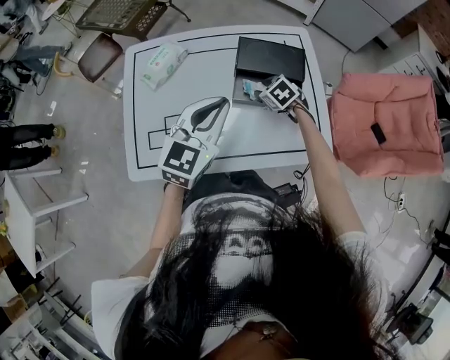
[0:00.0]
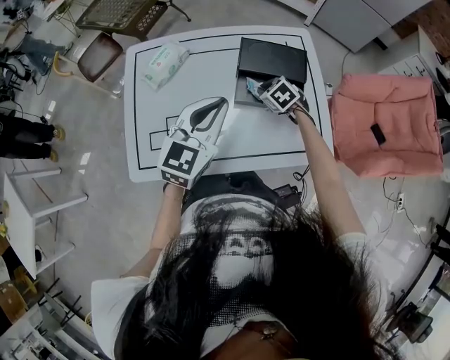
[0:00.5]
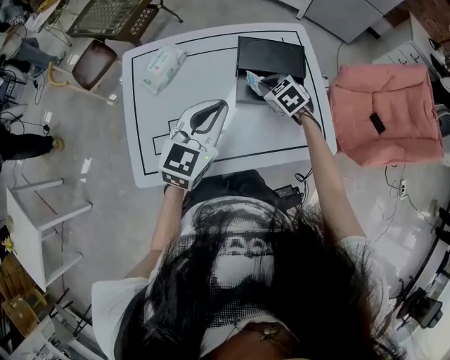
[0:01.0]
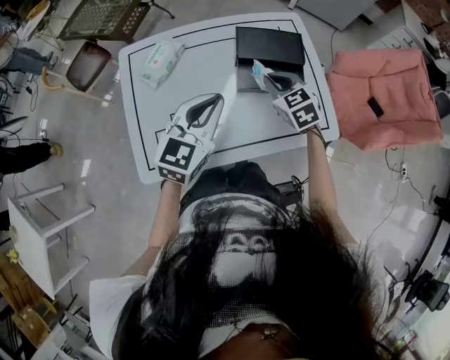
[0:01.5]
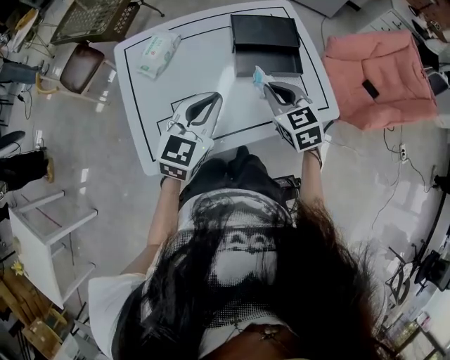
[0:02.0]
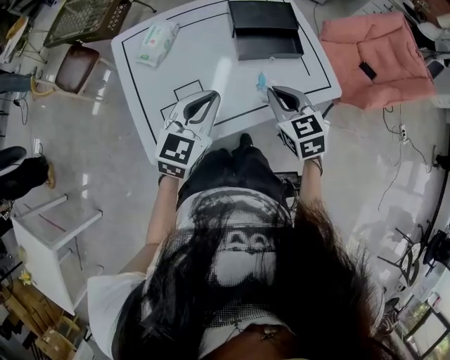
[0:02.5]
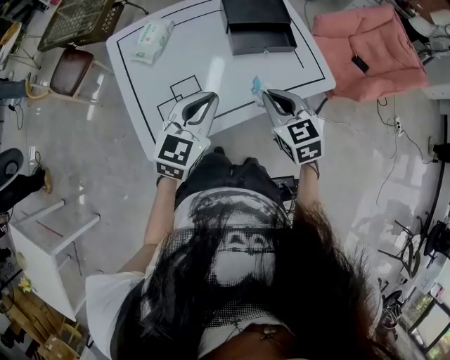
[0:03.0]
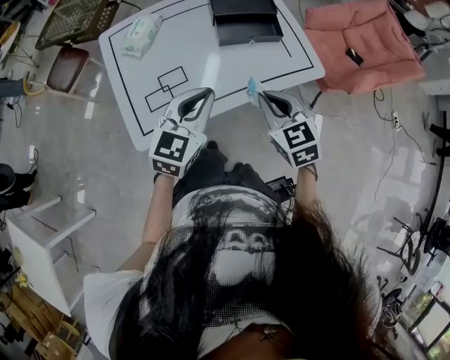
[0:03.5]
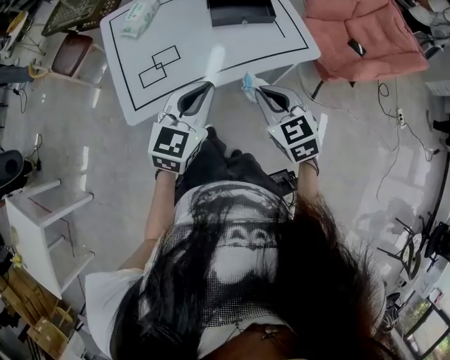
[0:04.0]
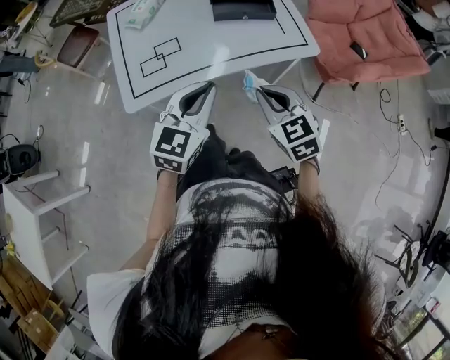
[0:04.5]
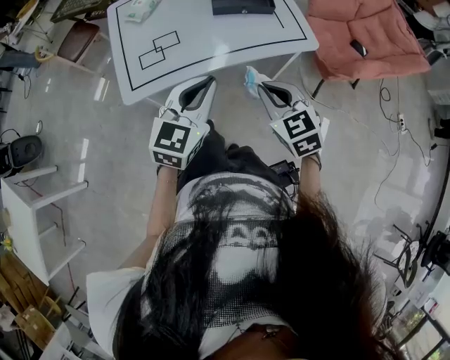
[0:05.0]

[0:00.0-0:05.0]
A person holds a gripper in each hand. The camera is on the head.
0:00.0 to 0:02.5: The right gripper travels backward and upward by some 30 cm, changes its angle by some 40 degrees, and closes. The left gripper heads to the left and backward, covering about 15 cm.
0:02.5 to 0:05.0: The two grippers go about 25 cm backward and to the right.

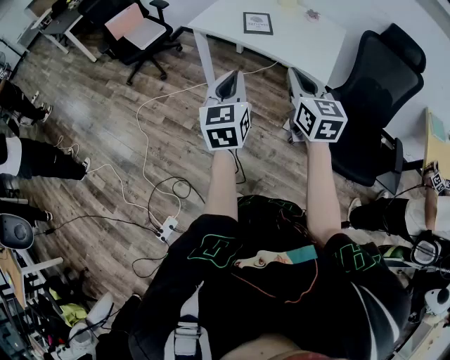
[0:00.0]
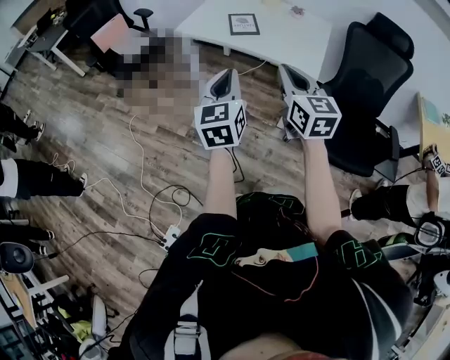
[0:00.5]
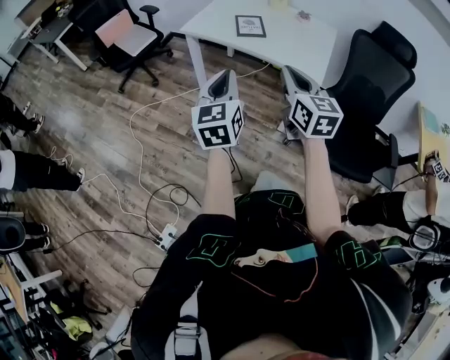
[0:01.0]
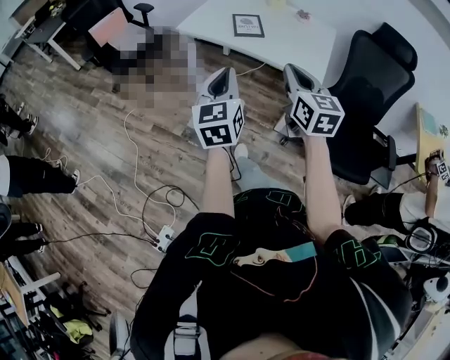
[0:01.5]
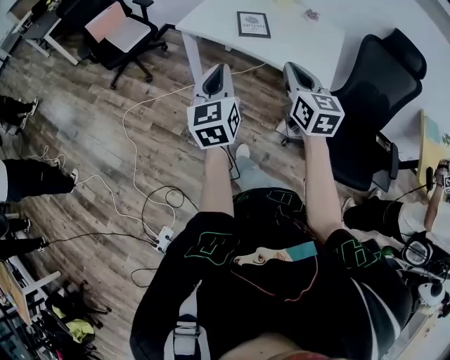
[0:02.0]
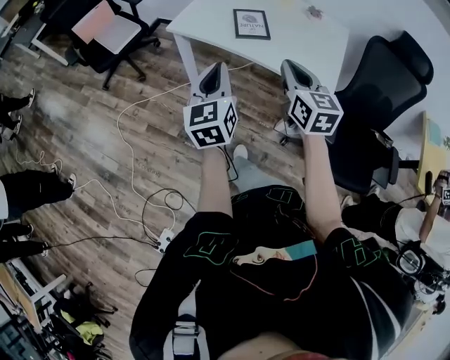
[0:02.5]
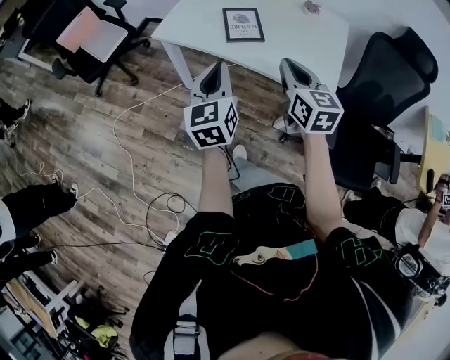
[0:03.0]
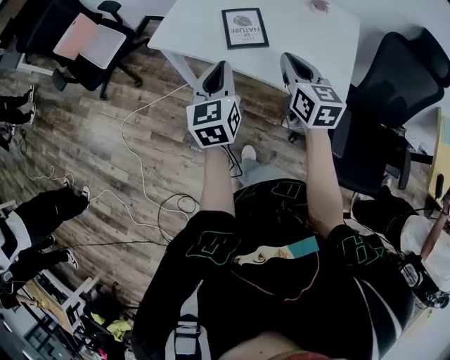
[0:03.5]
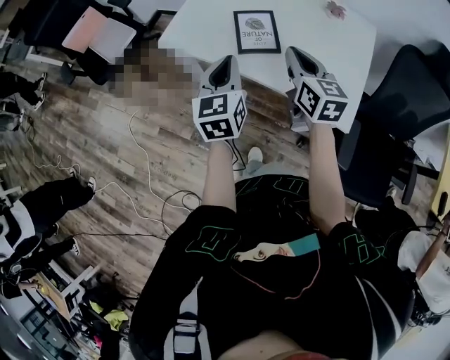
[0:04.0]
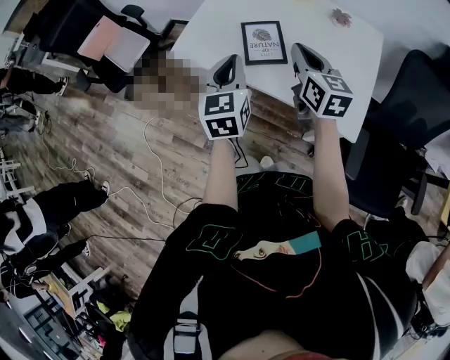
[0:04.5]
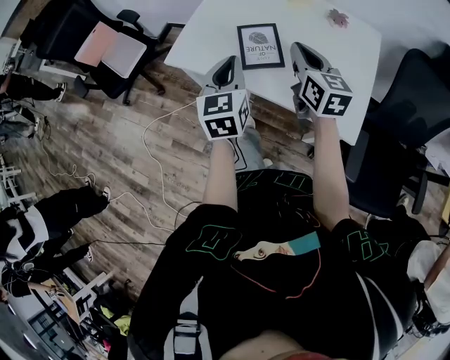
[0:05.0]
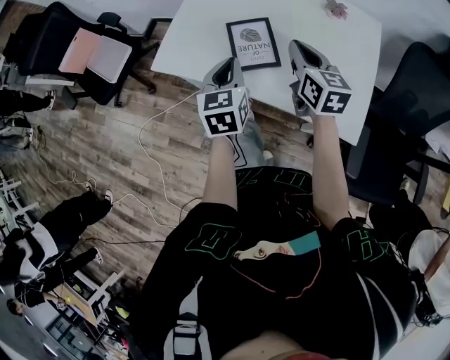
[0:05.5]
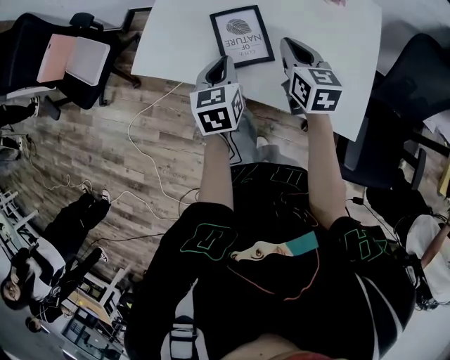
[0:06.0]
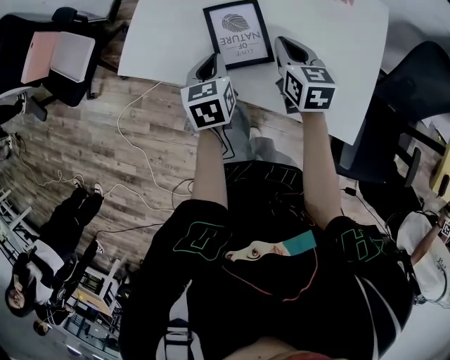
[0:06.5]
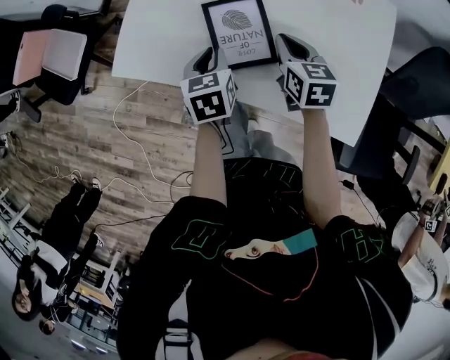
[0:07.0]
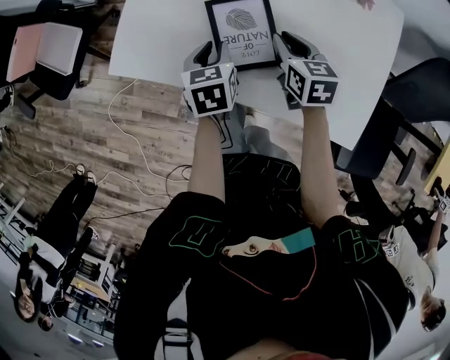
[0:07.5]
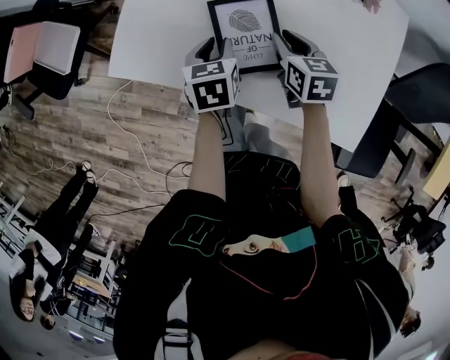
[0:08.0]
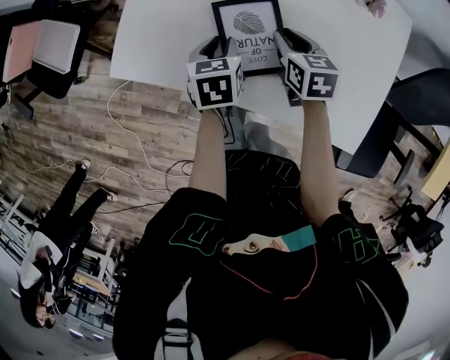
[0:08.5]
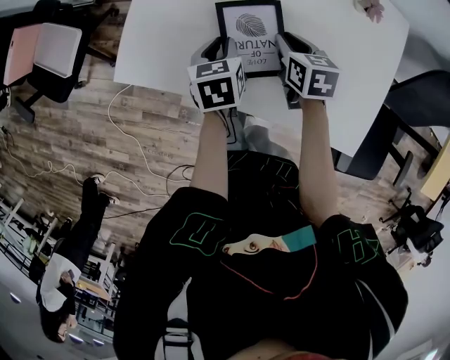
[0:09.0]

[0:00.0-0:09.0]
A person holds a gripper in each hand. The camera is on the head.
0:00.0 to 0:02.0: Both grippers travel together forward, about 10 cm.
0:02.0 to 0:04.5: The grippers both shift forward by roughly 30 cm.
0:04.5 to 0:07.0: Both grippers travel together downward and forward, approximately 25 cm. The right gripper turns by about 30 degrees, while the left gripper angles its fingers downward, by approximately 30 degrees.
0:07.0 to 0:09.0: The right gripper moves roughly 5 cm. Meanwhile the left gripper is displaced forward by approximately 5 cm.

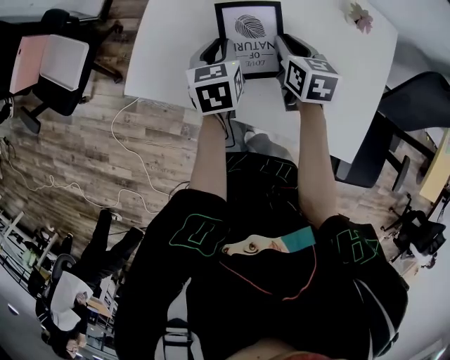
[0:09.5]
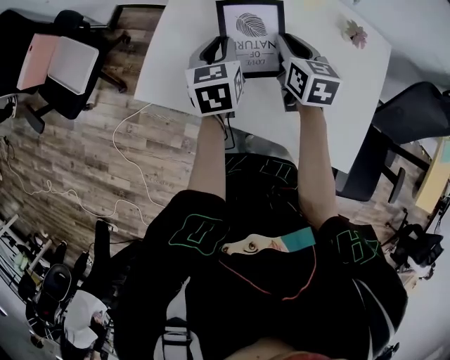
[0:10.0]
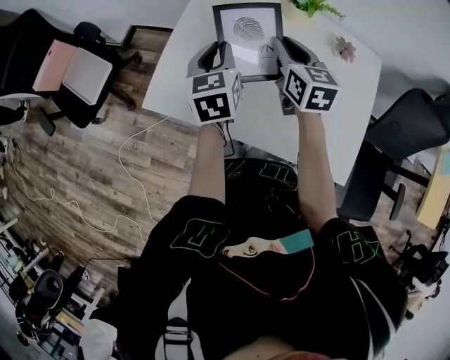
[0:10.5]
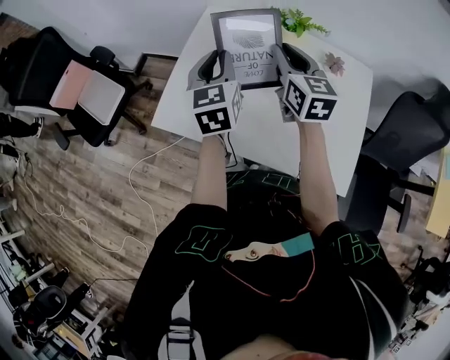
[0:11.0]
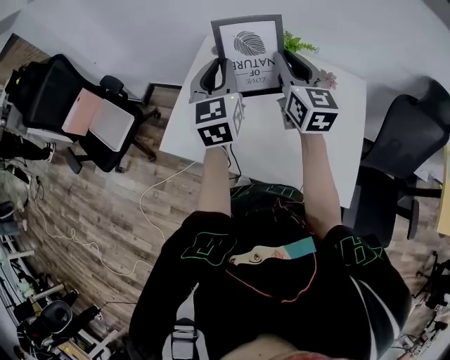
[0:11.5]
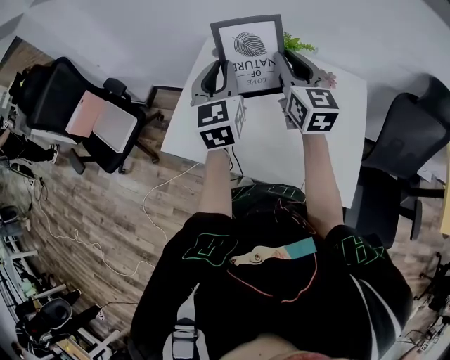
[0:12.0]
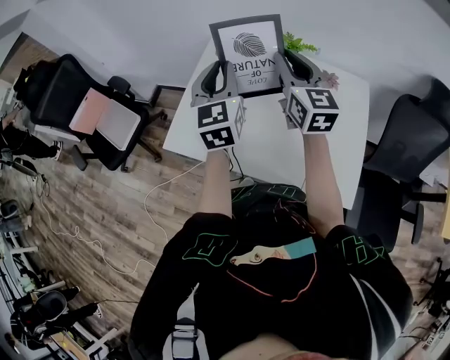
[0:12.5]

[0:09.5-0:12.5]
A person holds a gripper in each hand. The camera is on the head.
0:09.5 to 0:11.0: Both grippers travel together upward, some 20 cm. The left gripper rotates about 30 degrees; the right gripper angles its fingers upward, by roughly 30 degrees.
0:11.0 to 0:12.5: Both grippers move upward and to the right, approximately 10 cm.

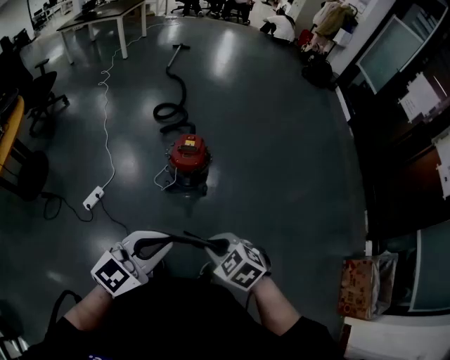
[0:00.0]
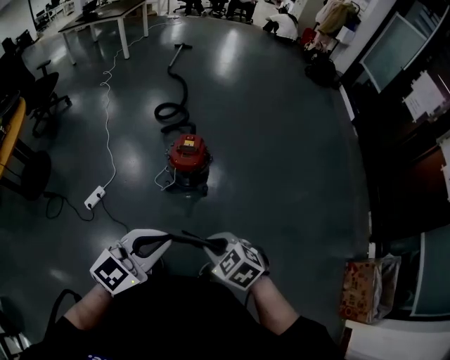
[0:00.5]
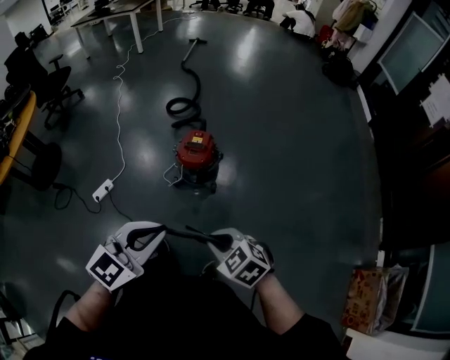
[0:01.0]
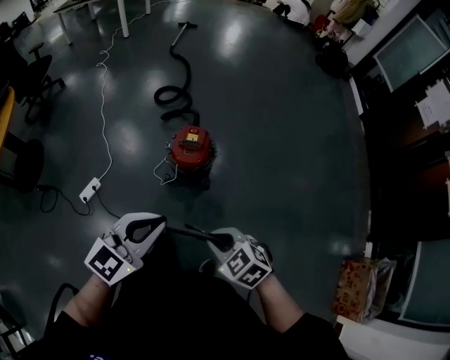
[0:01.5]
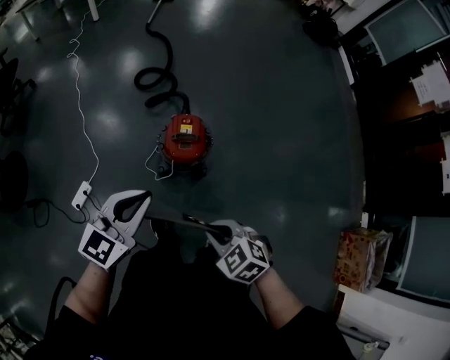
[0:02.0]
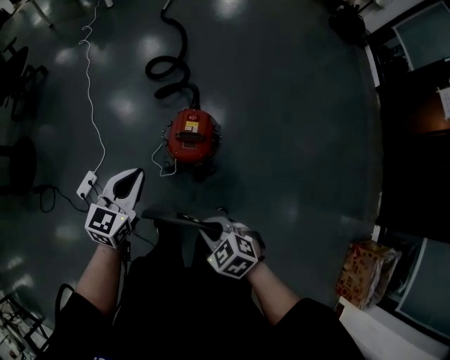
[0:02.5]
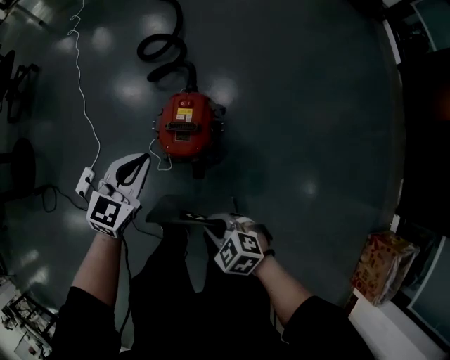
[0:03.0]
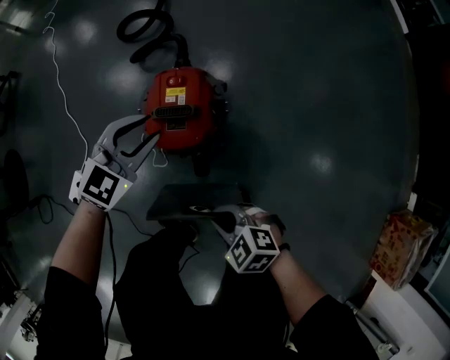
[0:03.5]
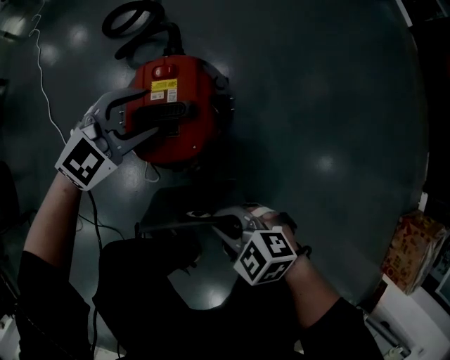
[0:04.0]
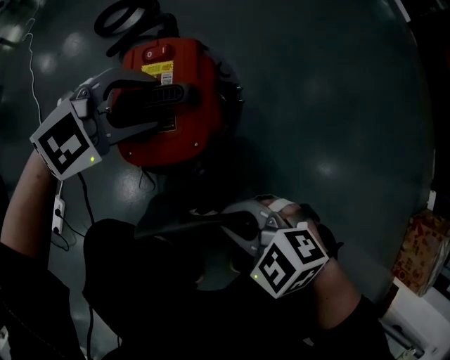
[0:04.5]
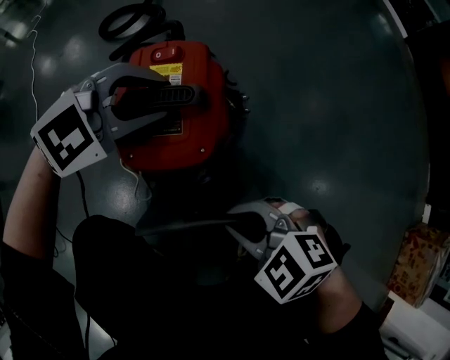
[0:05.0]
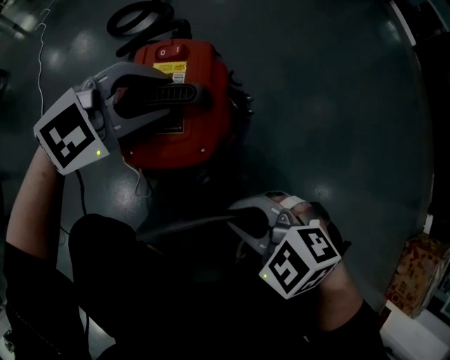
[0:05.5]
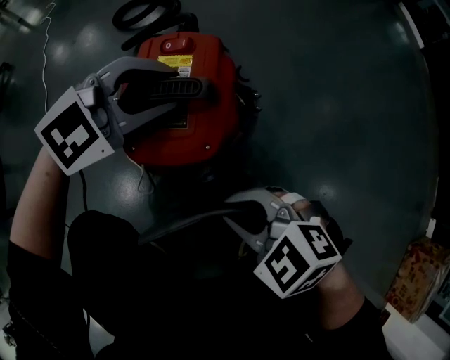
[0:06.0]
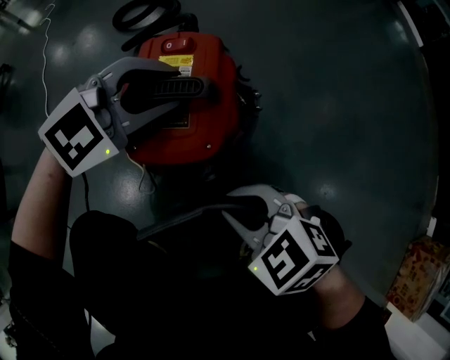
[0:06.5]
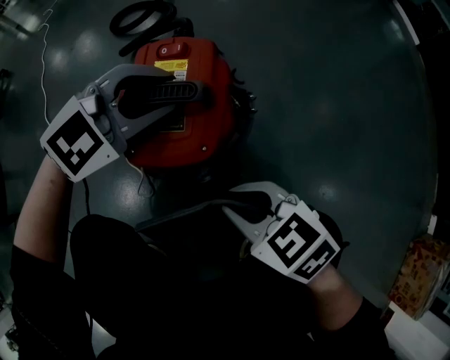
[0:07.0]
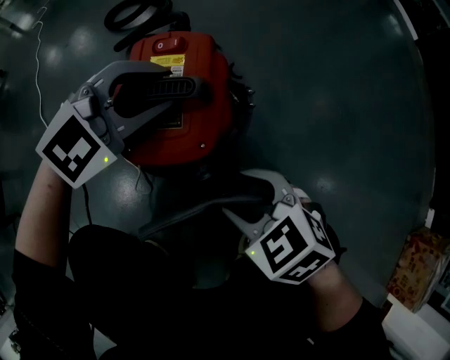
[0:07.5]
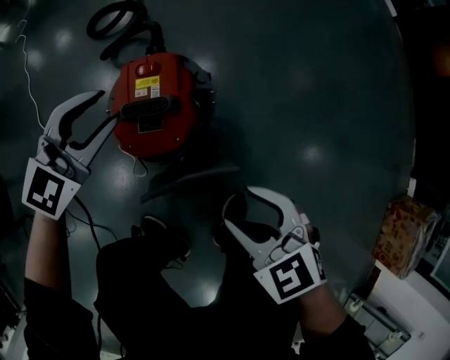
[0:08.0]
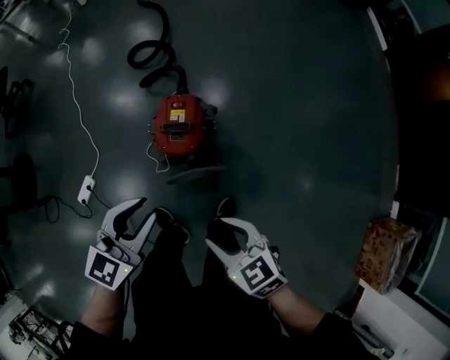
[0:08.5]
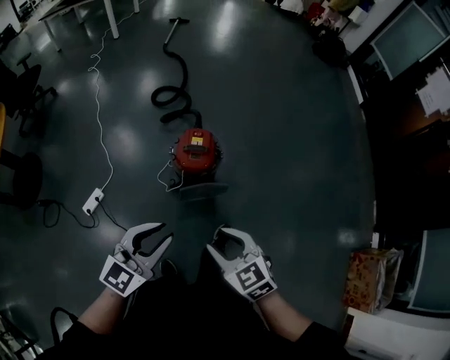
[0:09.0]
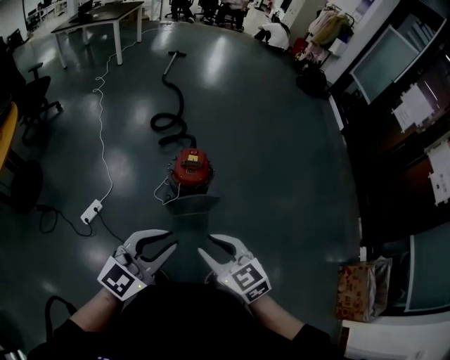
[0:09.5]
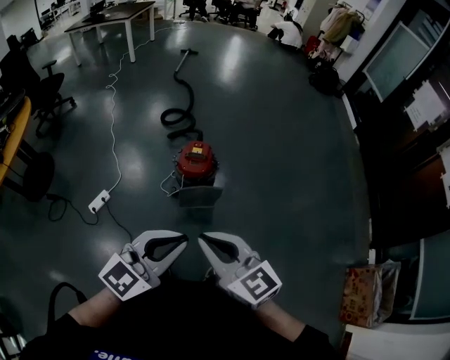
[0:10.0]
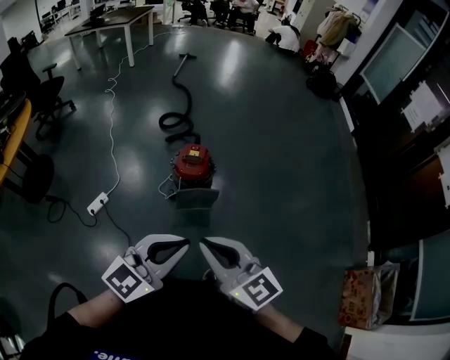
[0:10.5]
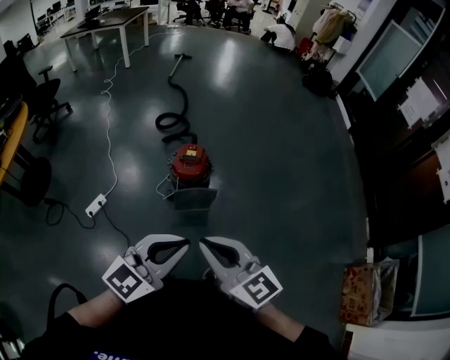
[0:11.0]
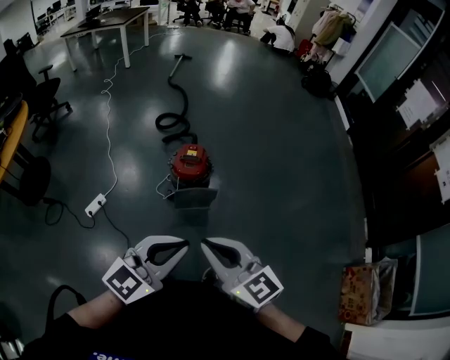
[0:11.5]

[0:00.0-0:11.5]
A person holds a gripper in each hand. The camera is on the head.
0:00.0 to 0:02.0: The left gripper goes some 30 cm forward, while the right gripper is displaced forward by roughly 20 cm.
0:02.0 to 0:04.0: Both grippers travel together downward, roughly 40 cm. The left gripper turns by roughly 40 degrees, and opens its fingers.
0:04.0 to 0:06.0: The right gripper changes place by approximately 10 cm. The left gripper closes up.
0:06.0 to 0:07.5: The right gripper rotates roughly 20 degrees, and opens its fingers.
0:07.5 to 0:09.5: Both grippers travel together upward and backward, some 70 cm. The left gripper rotates some 40 degrees, while the right gripper turns by approximately 30 degrees, and closes.
0:09.5 to 0:11.5: The right gripper shifts about 15 cm upward, backward and to the right, rotates approximately 20 degrees, and closes. Meanwhile the left gripper goes some 10 cm to the right and backward.
